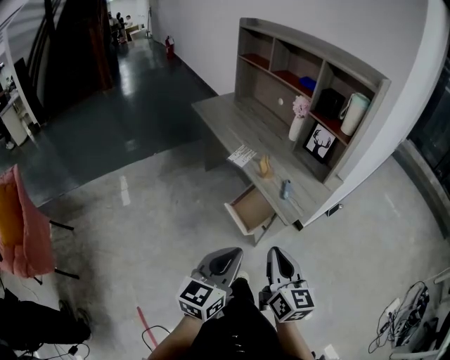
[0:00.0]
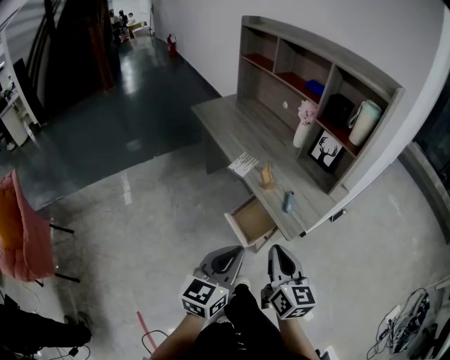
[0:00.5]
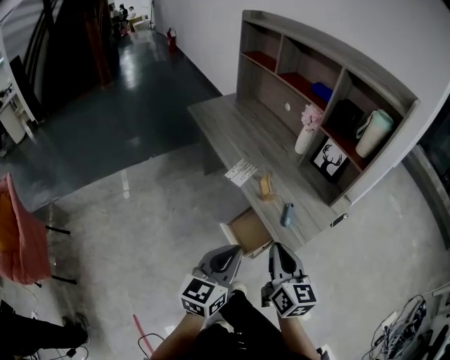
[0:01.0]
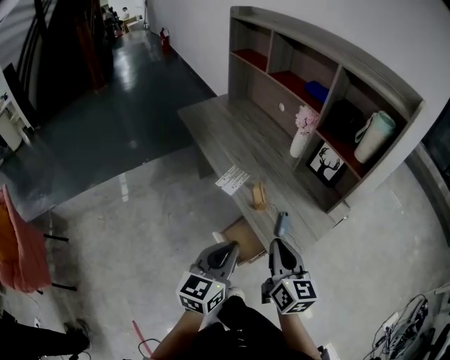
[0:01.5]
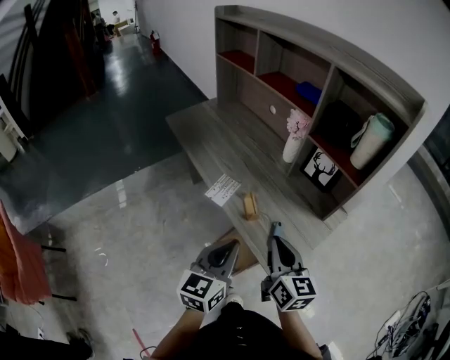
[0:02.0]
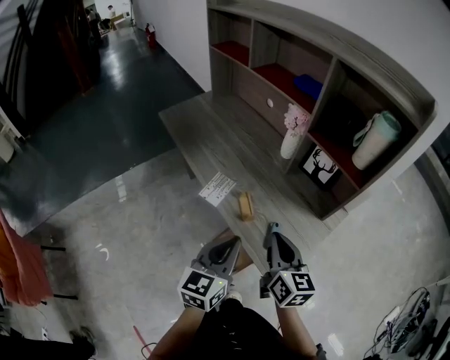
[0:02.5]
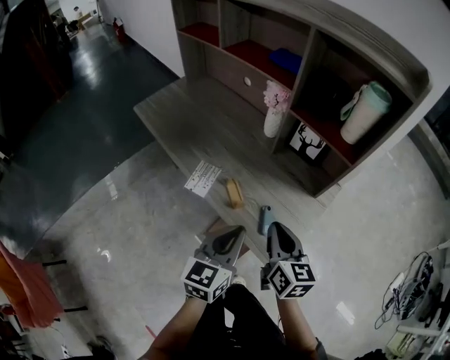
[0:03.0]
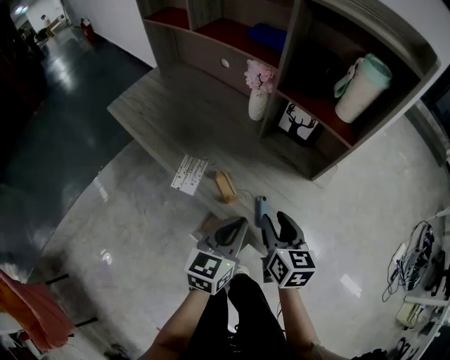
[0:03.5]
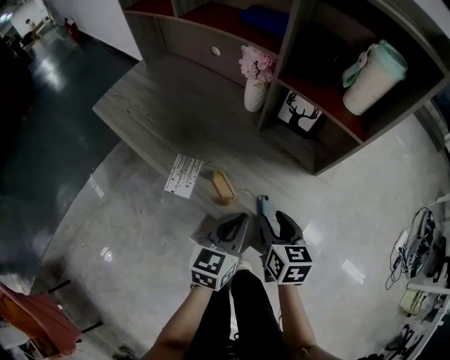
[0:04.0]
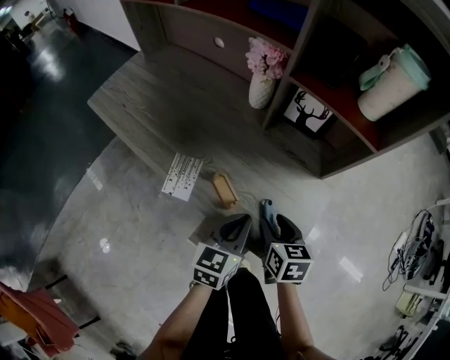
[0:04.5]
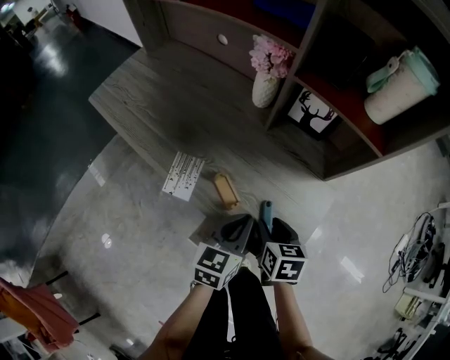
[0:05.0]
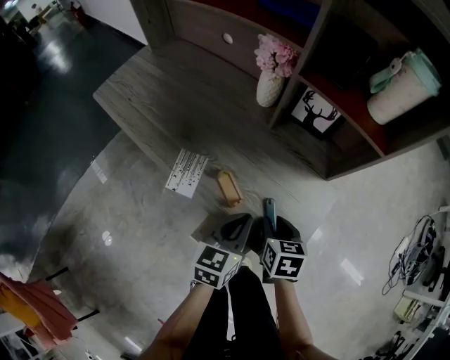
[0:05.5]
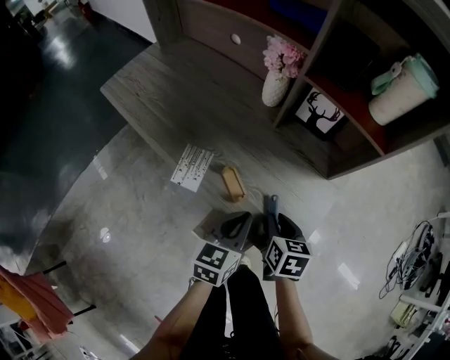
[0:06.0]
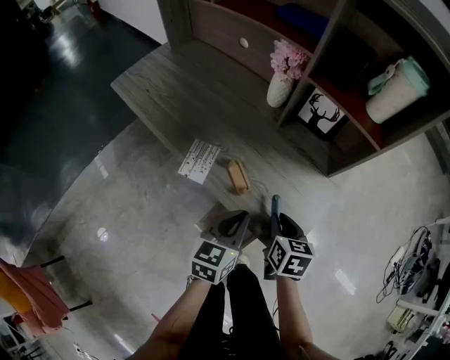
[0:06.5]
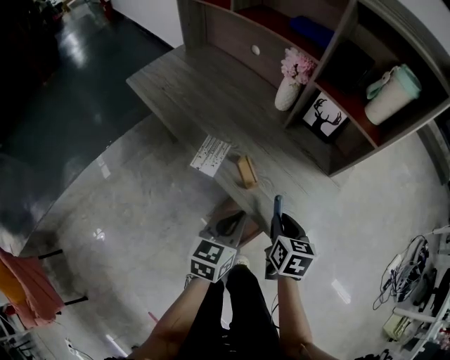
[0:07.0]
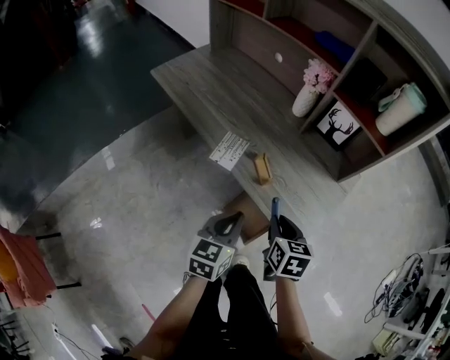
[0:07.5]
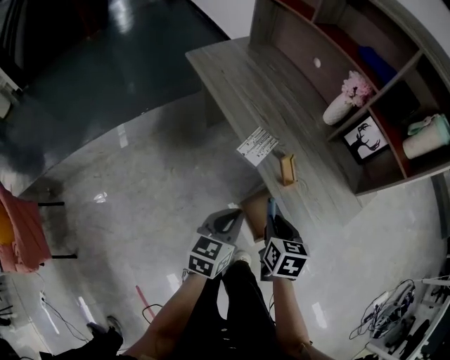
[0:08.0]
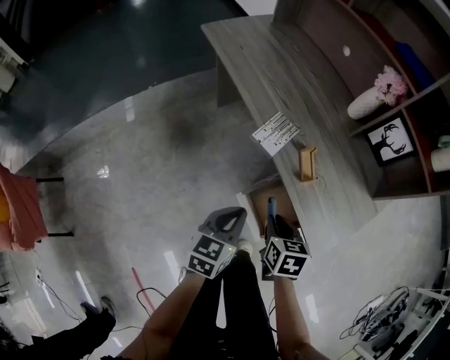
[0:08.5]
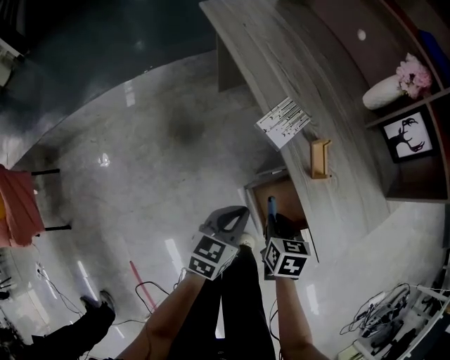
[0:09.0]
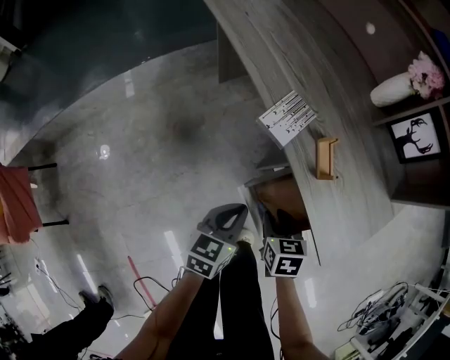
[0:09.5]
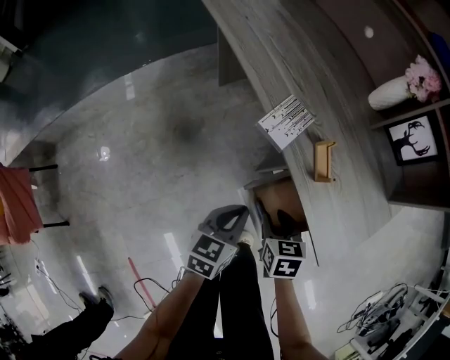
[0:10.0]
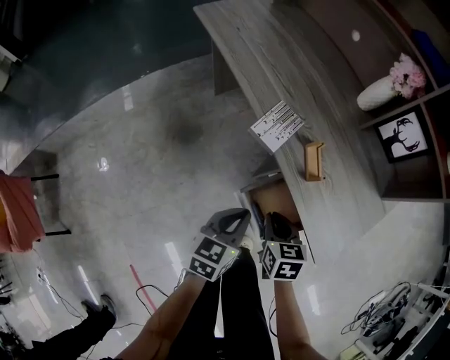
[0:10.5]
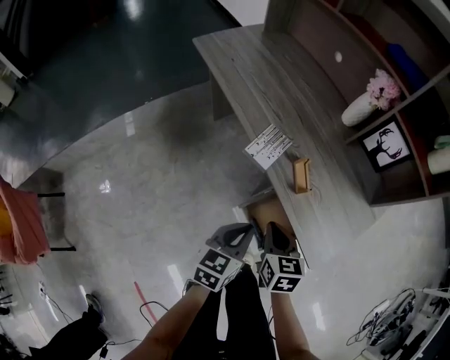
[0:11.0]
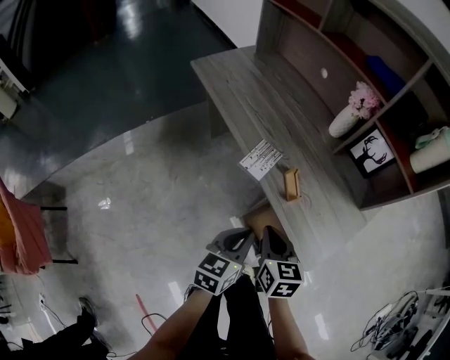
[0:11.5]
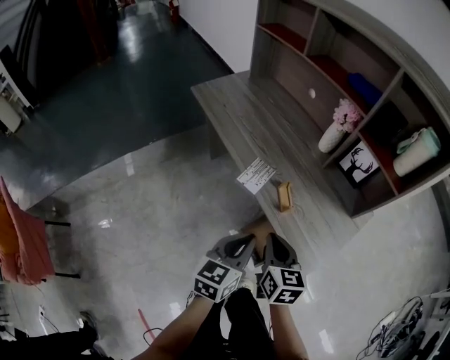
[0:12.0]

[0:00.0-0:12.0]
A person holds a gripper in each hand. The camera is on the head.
0:00.0 to 0:02.0: The grippers both shift forward by roughly 30 cm.
0:02.0 to 0:04.0: The right gripper moves downward and forward, some 15 cm, swivels about 30 degrees, and opens its fingers. Meanwhile the left gripper heads downward, forward and to the right, covering about 15 cm, and changes its angle by approximately 20 degrees.
0:04.0 to 0:06.0: The right gripper is displaced downward by some 5 cm, and closes its fingers.
0:06.0 to 0:08.0: The grippers both shift to the left and backward by roughly 20 cm.
0:08.0 to 0:10.0: Both grippers travel together downward, roughly 15 cm.
0:10.0 to 0:12.0: The grippers both shift upward by approximately 20 cm. The right gripper turns by about 30 degrees, and closes its fingers.

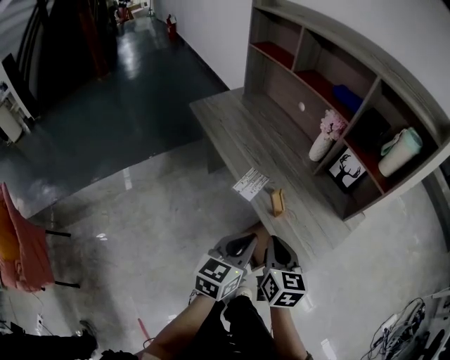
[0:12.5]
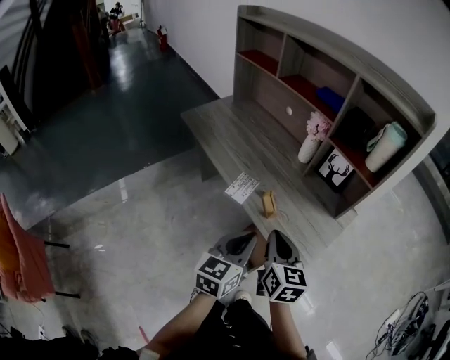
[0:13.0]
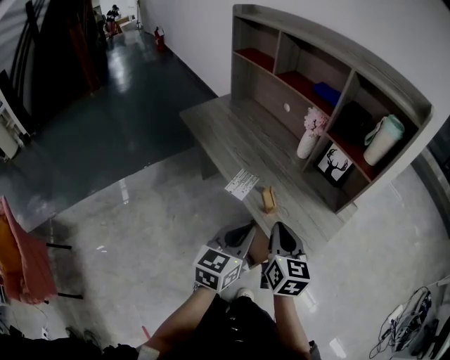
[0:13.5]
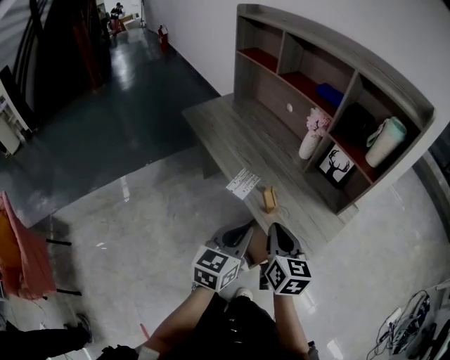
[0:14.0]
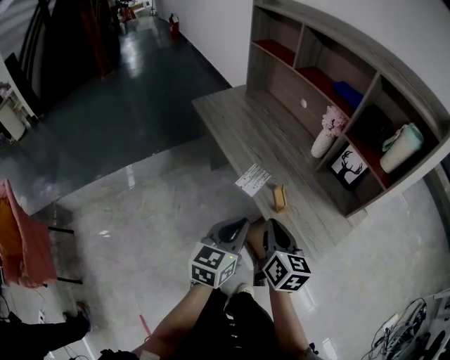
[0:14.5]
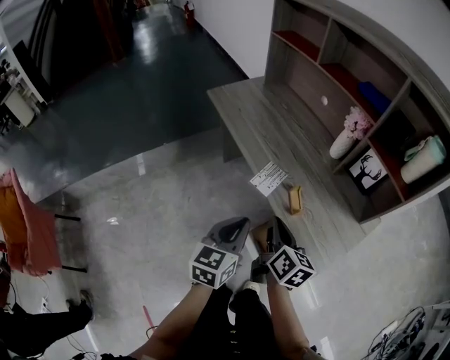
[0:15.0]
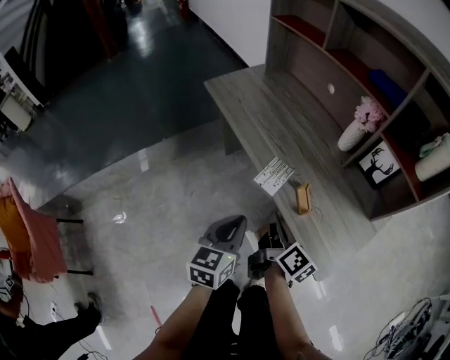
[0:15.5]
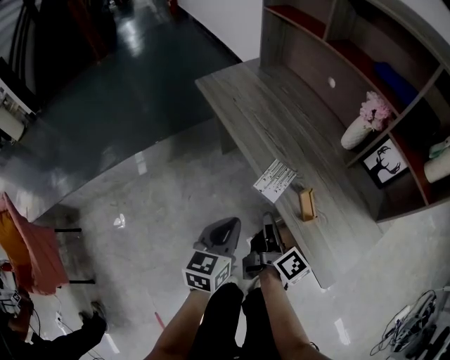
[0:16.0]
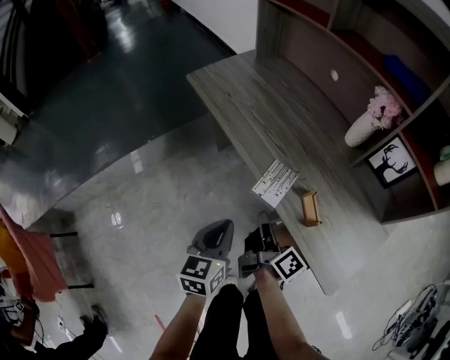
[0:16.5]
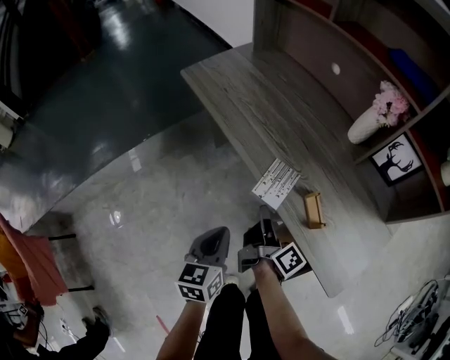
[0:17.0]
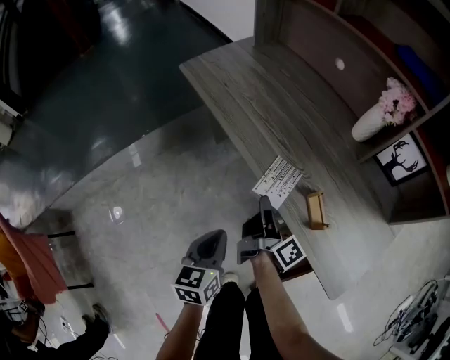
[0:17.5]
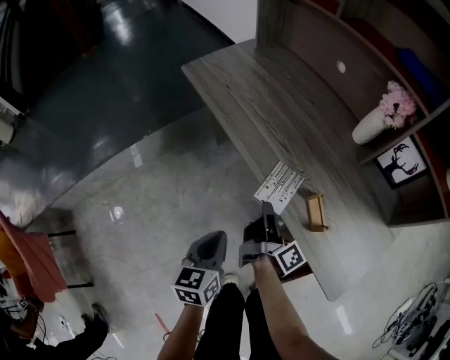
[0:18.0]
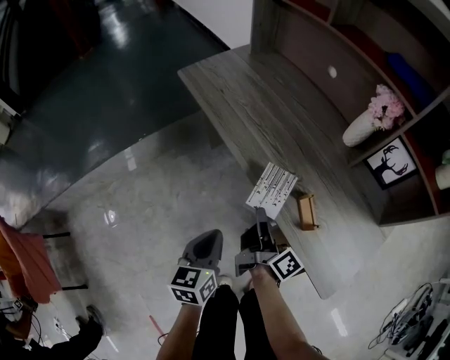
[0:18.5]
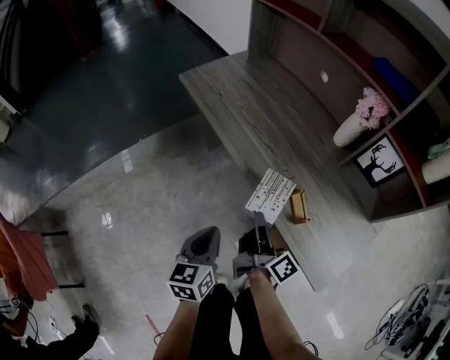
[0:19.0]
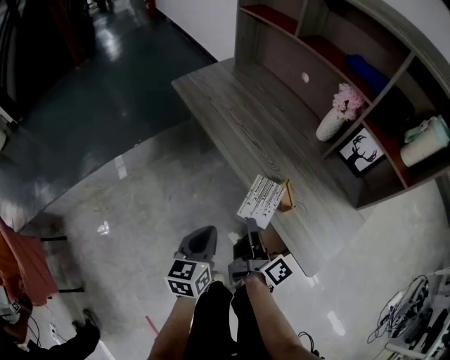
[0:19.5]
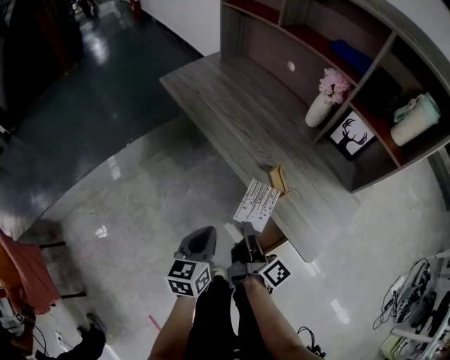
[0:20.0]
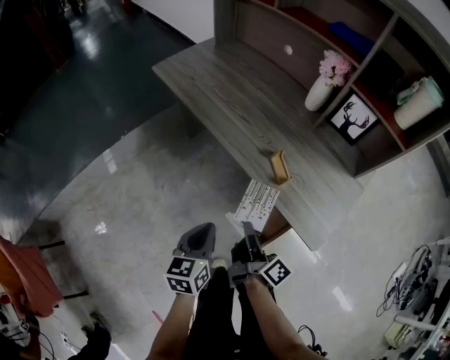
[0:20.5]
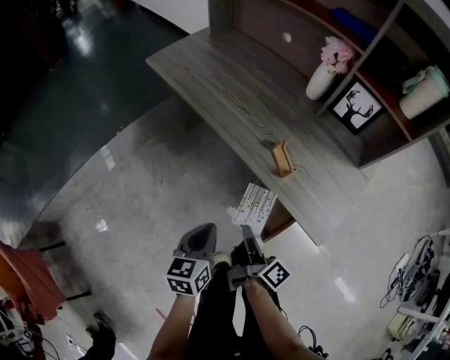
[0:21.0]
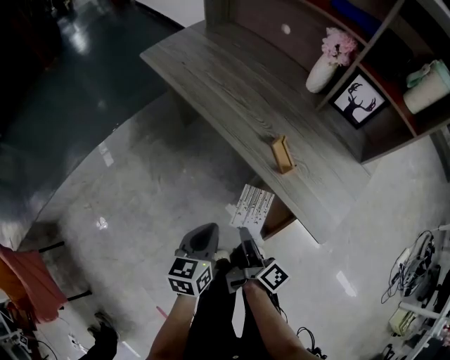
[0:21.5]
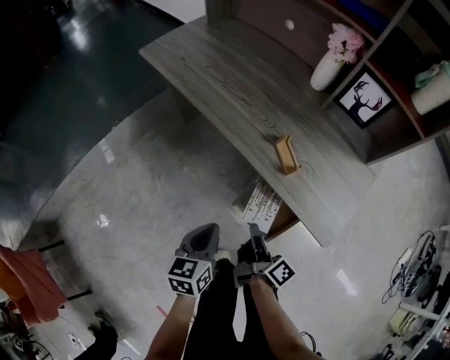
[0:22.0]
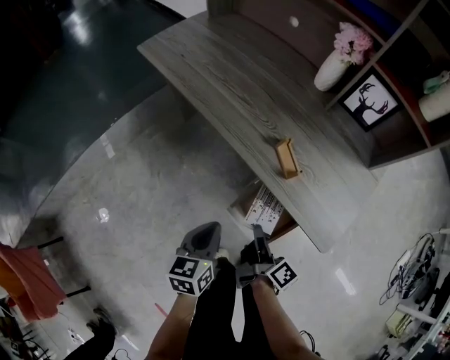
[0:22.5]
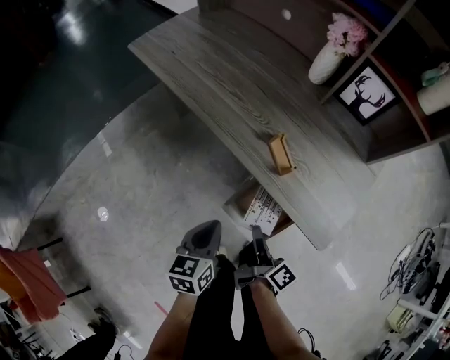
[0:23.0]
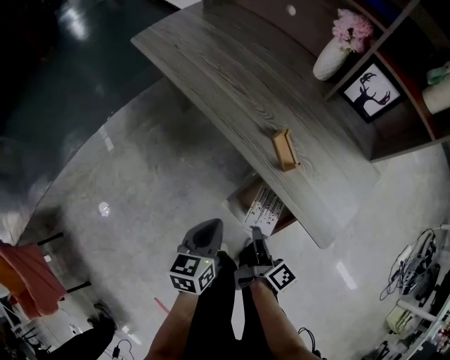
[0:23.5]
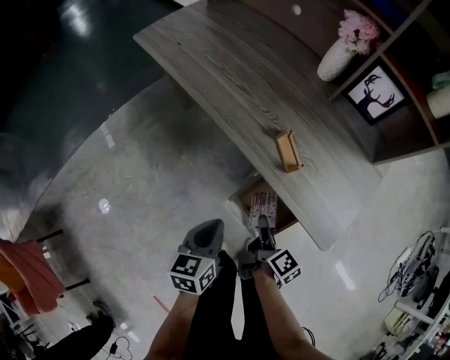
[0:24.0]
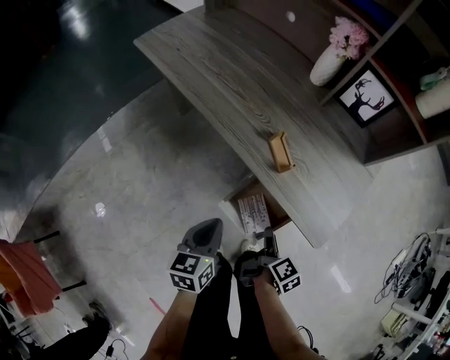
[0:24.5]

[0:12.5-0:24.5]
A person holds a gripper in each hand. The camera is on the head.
0:12.5 to 0:14.5: The grippers stay close to where they were, moving slightly.
0:14.5 to 0:16.5: The left gripper shifts some 20 cm downward, to the left and forward, while the right gripper shifts roughly 20 cm downward, forward and to the left, and rotates around the line of its fingers by approximately 50 degrees, clockwise from behind.
0:16.5 to 0:18.5: The right gripper opens and closes again.
0:18.5 to 0:20.5: The left gripper travels backward by about 10 cm; the right gripper travels backward by some 15 cm.
0:20.5 to 0:22.5: The two grippers go some 10 cm downward.
0:22.5 to 0:24.5: The right gripper heads to the right, covering approximately 10 cm, turns by approximately 30 degrees, and opens its fingers.

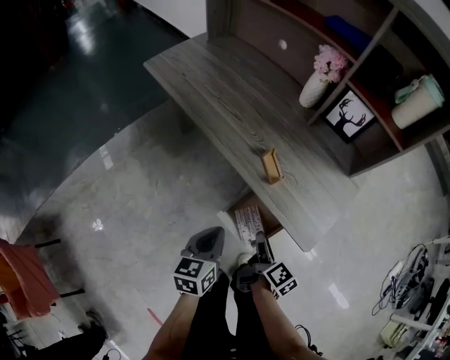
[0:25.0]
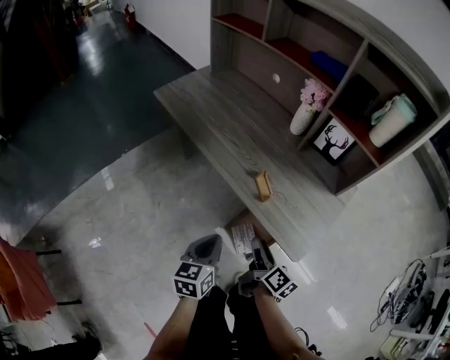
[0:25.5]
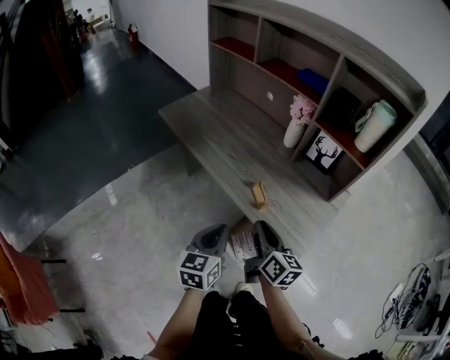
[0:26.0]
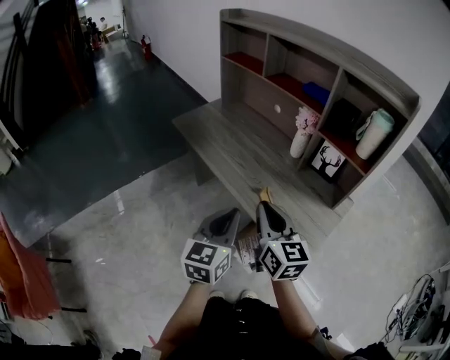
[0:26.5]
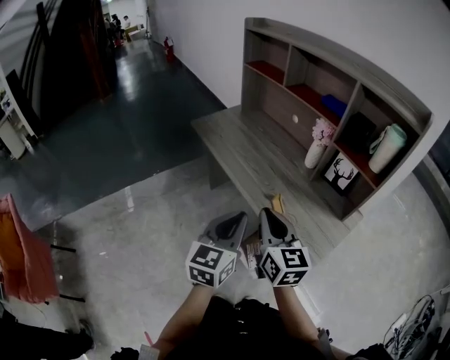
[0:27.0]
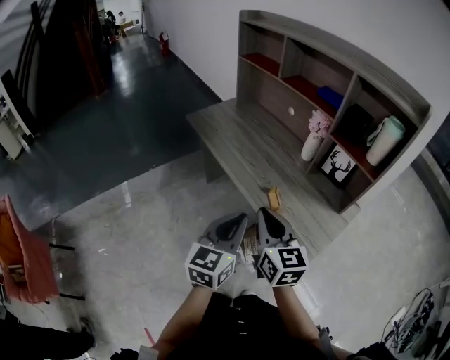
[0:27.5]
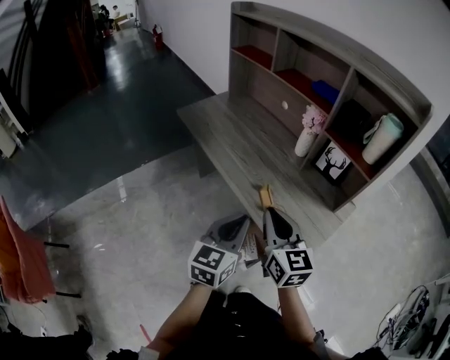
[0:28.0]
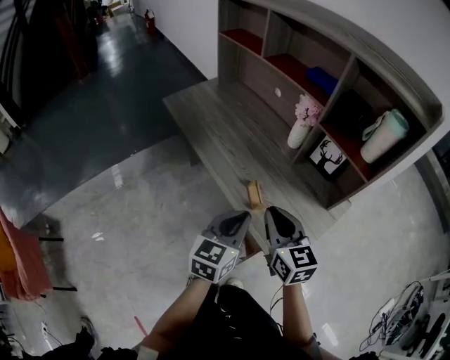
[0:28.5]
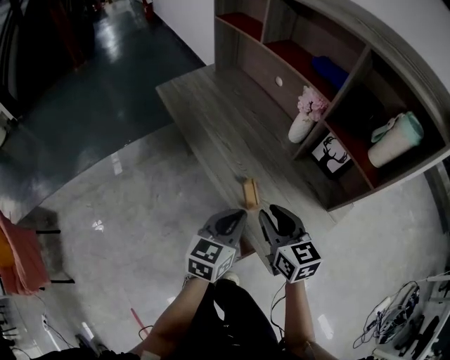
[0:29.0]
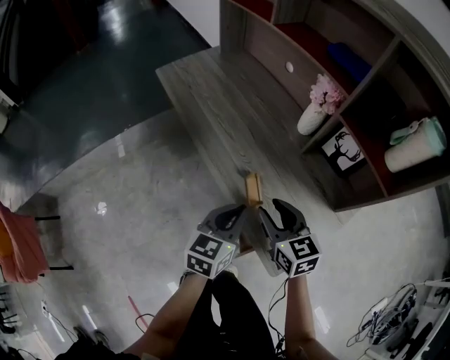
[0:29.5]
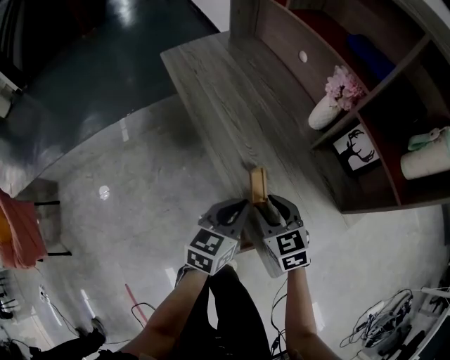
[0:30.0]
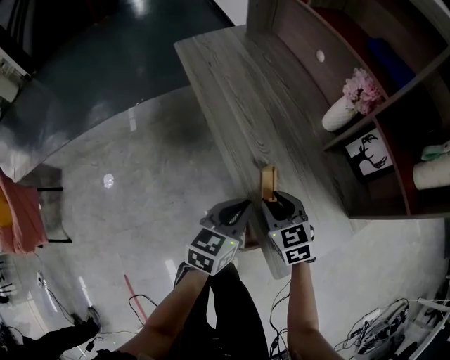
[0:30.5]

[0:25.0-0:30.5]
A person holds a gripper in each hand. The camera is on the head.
0:25.0 to 0:27.0: Both grippers move upward, approximately 30 cm. The left gripper turns by approximately 30 degrees; the right gripper twists about 60 degrees counterclockwise, seen from behind, and closes its fingers.
0:27.0 to 0:28.5: Both grippers move to the right and downward, approximately 10 cm.
0:28.5 to 0:30.5: The right gripper heads downward, covering about 20 cm, swivels about 30 degrees, and opens its fingers. Meanwhile the left gripper is displaced downward and forward by approximately 15 cm.
